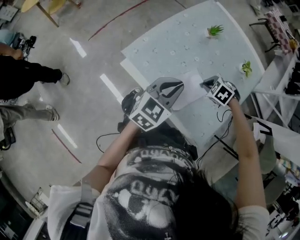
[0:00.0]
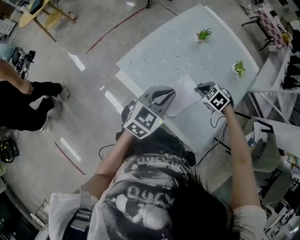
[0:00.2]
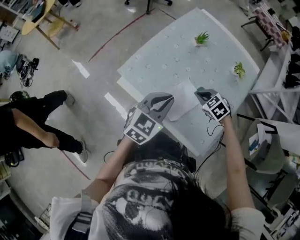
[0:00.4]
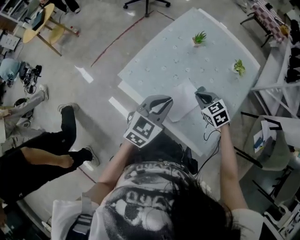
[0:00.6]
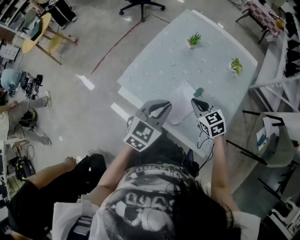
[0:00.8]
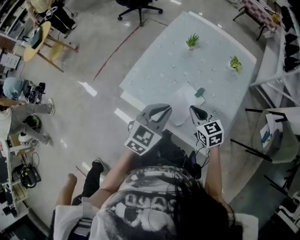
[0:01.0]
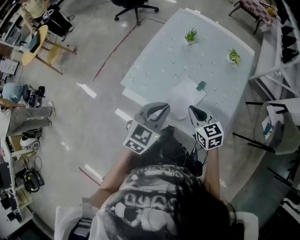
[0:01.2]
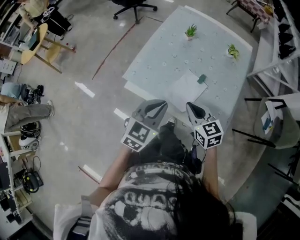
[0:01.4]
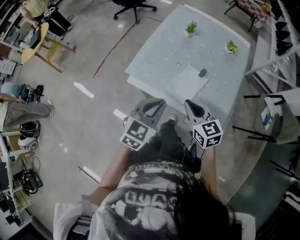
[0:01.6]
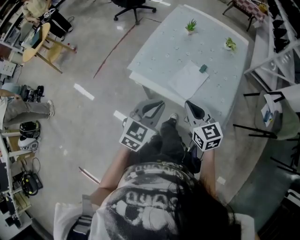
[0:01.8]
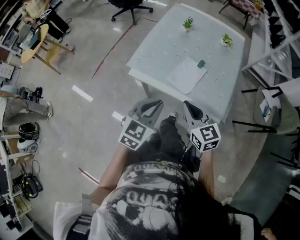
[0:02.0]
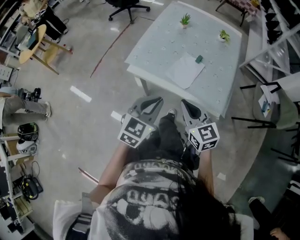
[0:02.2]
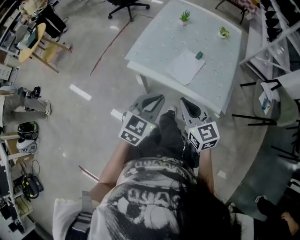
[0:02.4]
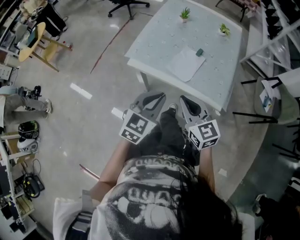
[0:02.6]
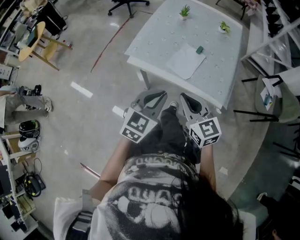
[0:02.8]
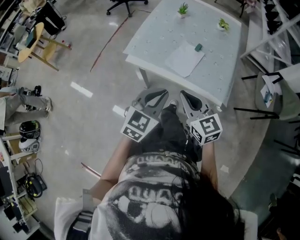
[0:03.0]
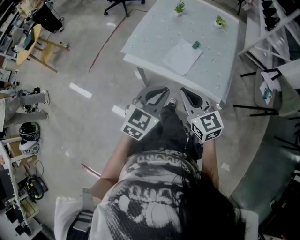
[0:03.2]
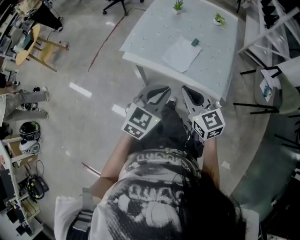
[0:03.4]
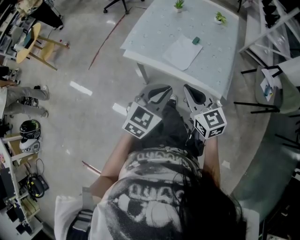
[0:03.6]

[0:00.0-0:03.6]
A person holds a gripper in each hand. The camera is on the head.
0:00.0 to 0:01.8: The left gripper changes place by approximately 20 cm, while the right gripper moves about 30 cm, and angles its fingers upward, by some 60 degrees.
0:01.8 to 0:03.6: The left gripper moves backward and to the right, about 10 cm. Meanwhile the right gripper shifts approximately 10 cm backward.

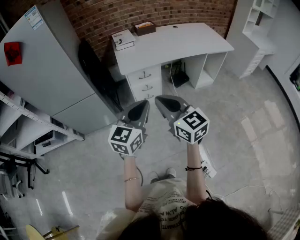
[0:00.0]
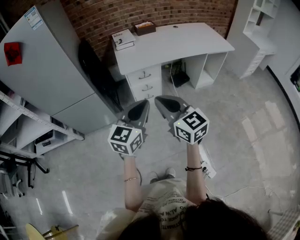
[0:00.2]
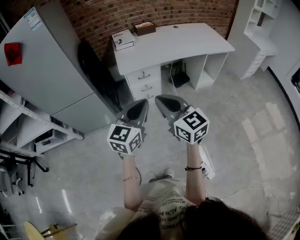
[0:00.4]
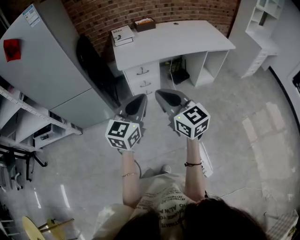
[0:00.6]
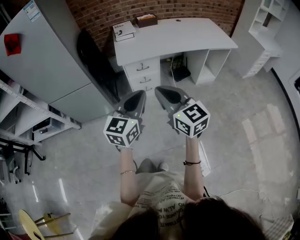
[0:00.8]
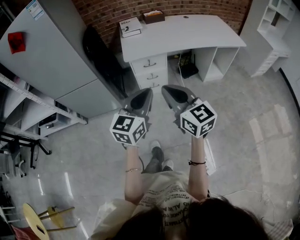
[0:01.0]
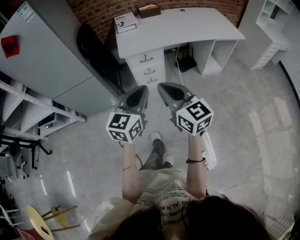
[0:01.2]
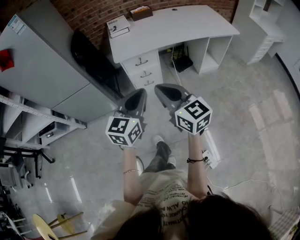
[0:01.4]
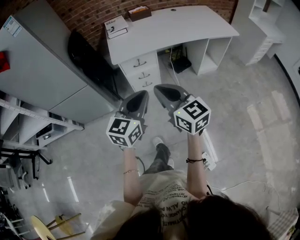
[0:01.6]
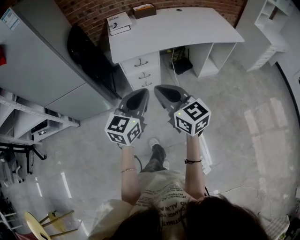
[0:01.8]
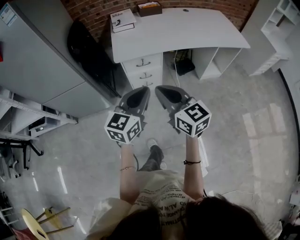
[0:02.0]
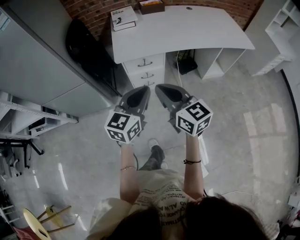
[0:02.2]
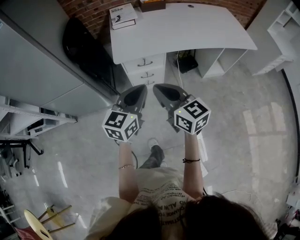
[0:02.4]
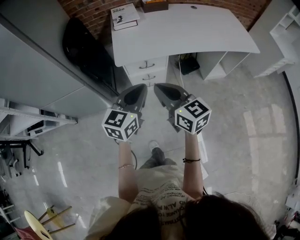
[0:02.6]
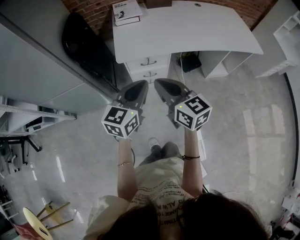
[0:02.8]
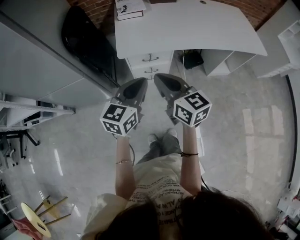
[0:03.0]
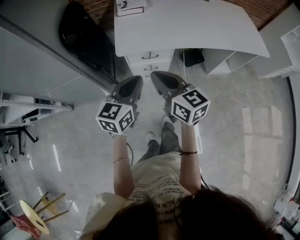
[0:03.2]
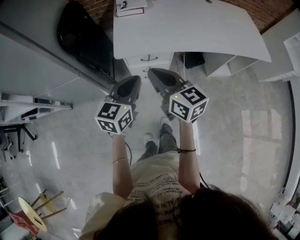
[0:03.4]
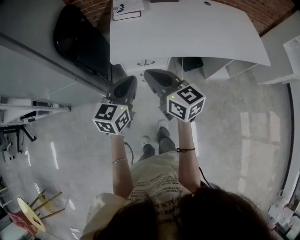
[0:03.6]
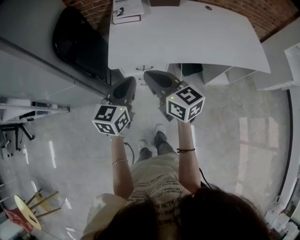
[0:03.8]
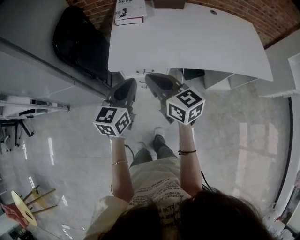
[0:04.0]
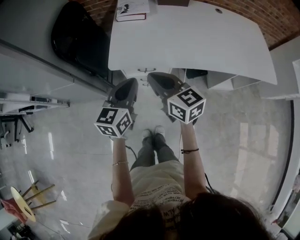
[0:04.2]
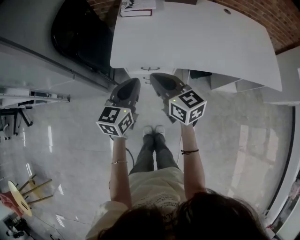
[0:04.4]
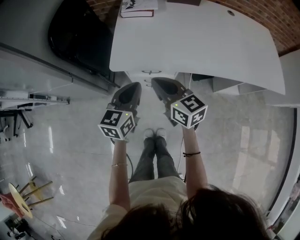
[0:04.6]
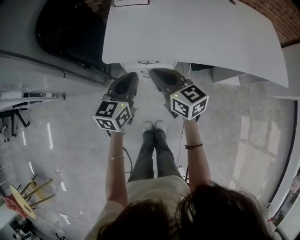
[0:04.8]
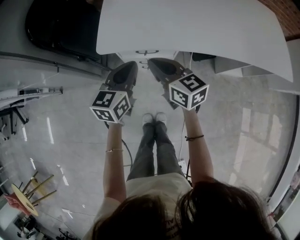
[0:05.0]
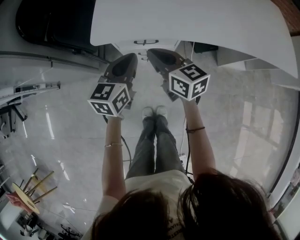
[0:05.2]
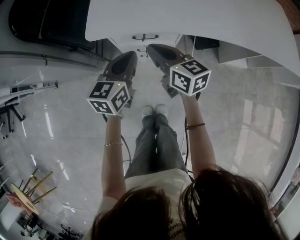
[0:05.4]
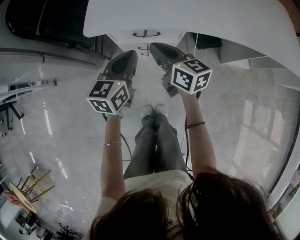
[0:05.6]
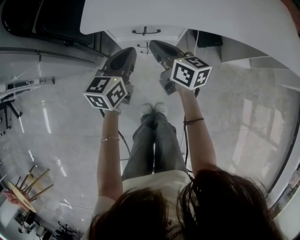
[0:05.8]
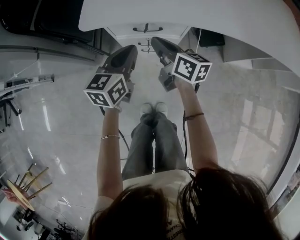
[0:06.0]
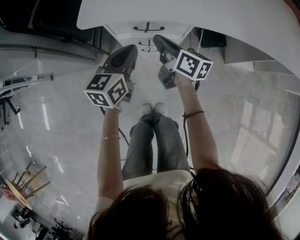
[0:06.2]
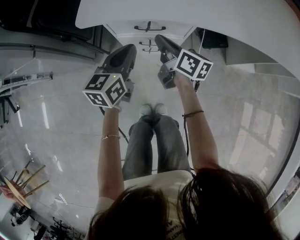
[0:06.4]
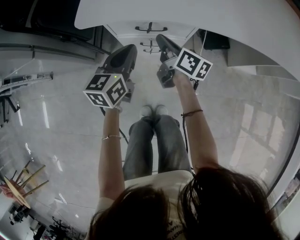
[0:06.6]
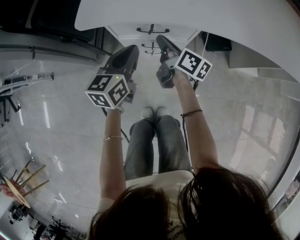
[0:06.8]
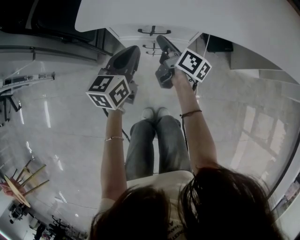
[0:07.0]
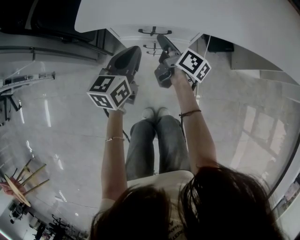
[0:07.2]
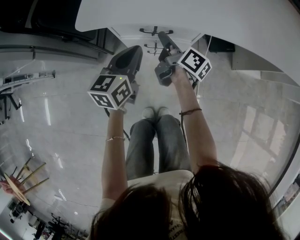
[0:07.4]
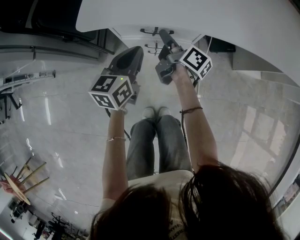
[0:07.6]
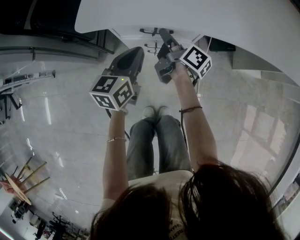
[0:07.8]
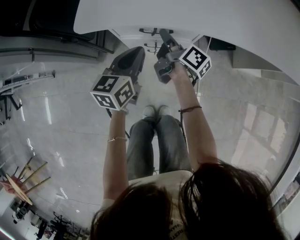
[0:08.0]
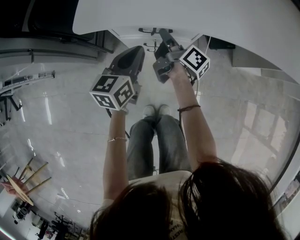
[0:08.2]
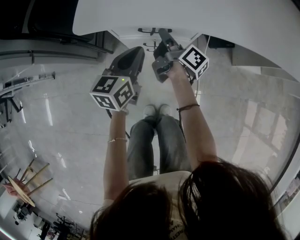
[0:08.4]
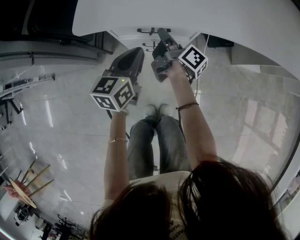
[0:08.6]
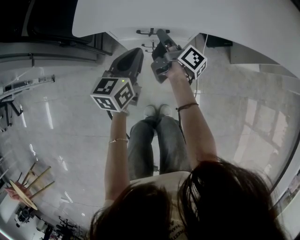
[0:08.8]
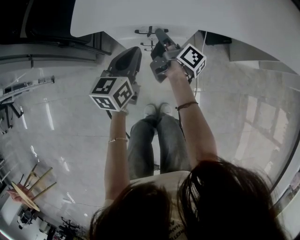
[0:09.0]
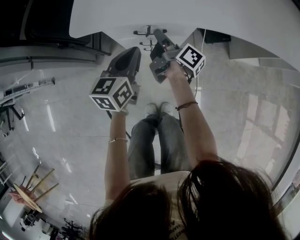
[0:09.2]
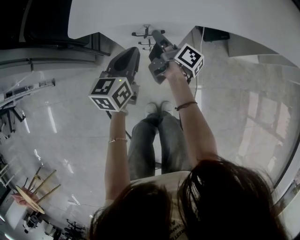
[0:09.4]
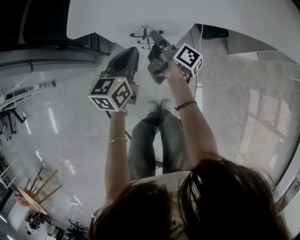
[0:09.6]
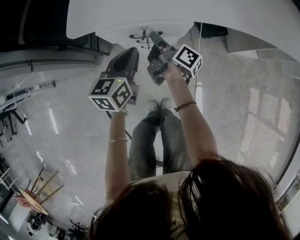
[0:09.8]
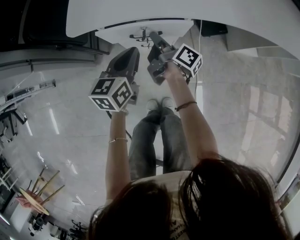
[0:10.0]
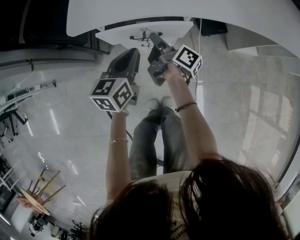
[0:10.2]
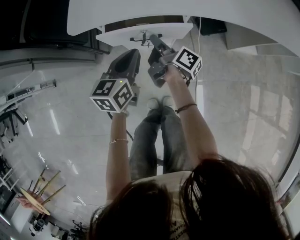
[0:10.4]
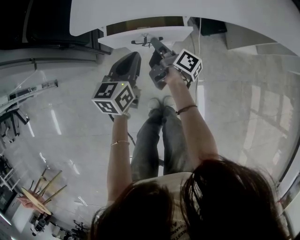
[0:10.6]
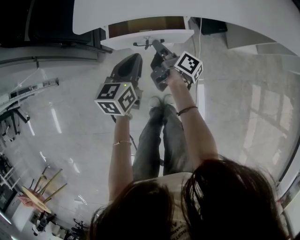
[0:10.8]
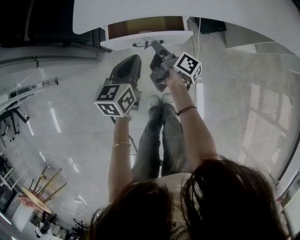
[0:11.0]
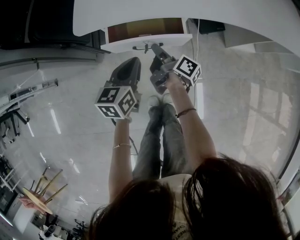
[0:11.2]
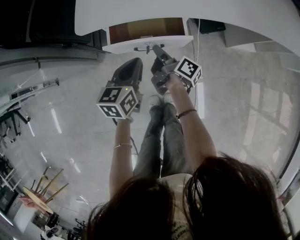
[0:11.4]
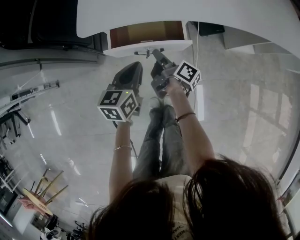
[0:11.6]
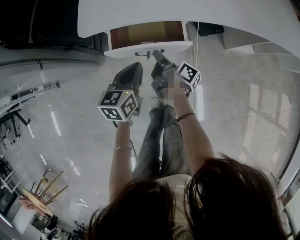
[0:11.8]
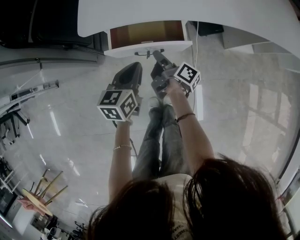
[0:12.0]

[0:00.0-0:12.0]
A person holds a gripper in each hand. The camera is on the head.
0:00.0 to 0:01.6: Both grippers move to the right, approximately 10 cm.
0:01.6 to 0:03.0: The grippers both shift forward by roughly 25 cm.
0:03.0 to 0:04.4: The two grippers go approximately 15 cm forward and downward.
0:04.4 to 0:06.0: Both grippers travel together downward, approximately 25 cm. The right gripper swivels roughly 30 degrees.
0:06.0 to 0:07.6: The right gripper travels downward and forward by roughly 10 cm, swivels some 30 degrees, and opens up, while the left gripper heads downward, covering approximately 5 cm.
0:07.6 to 0:09.0: There are only small adjustments of the grippers.
0:09.0 to 0:10.4: The right gripper goes approximately 5 cm backward.
0:10.4 to 0:12.0: The grippers both shift backward by some 5 cm.

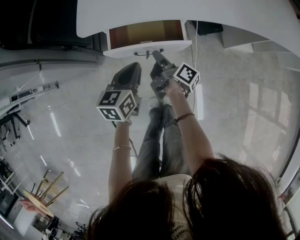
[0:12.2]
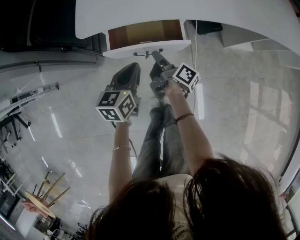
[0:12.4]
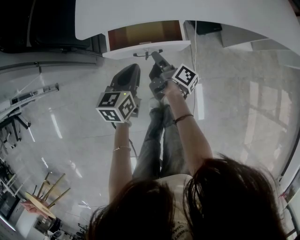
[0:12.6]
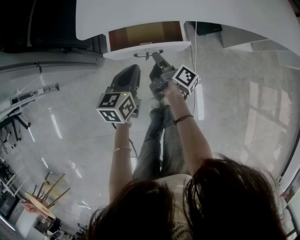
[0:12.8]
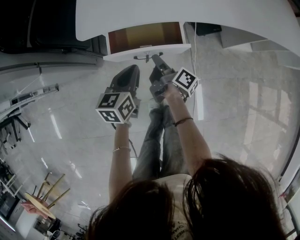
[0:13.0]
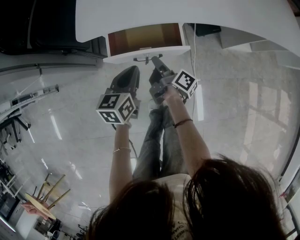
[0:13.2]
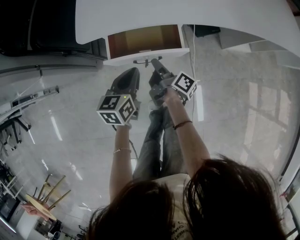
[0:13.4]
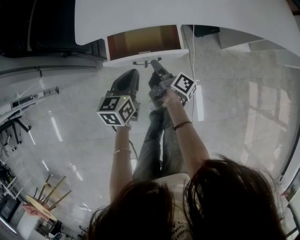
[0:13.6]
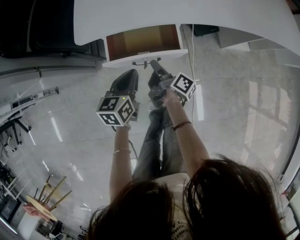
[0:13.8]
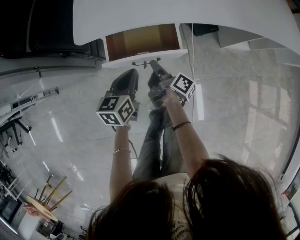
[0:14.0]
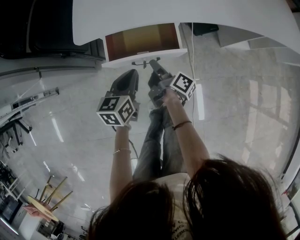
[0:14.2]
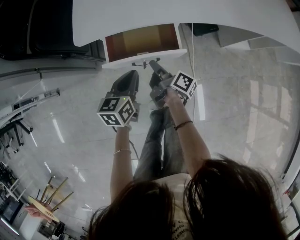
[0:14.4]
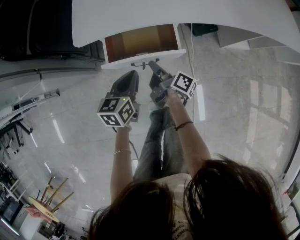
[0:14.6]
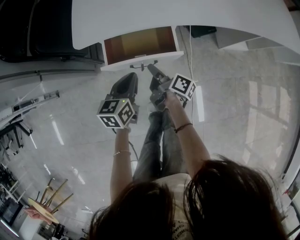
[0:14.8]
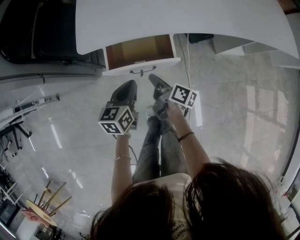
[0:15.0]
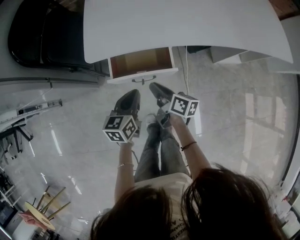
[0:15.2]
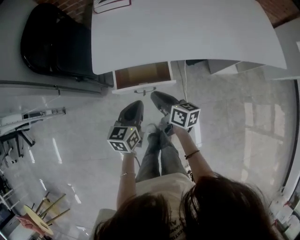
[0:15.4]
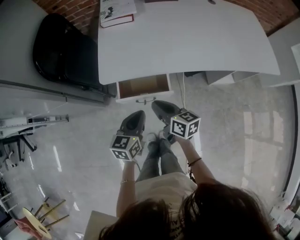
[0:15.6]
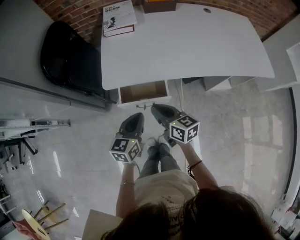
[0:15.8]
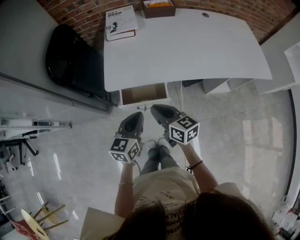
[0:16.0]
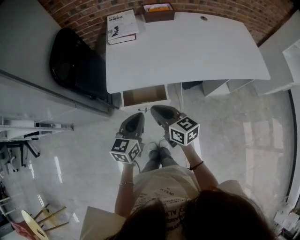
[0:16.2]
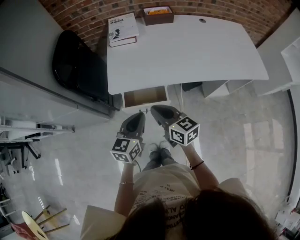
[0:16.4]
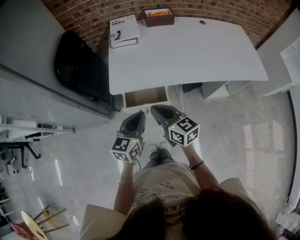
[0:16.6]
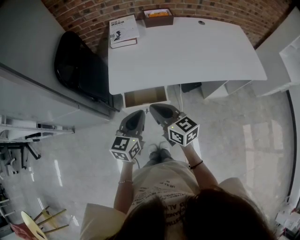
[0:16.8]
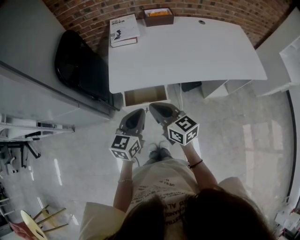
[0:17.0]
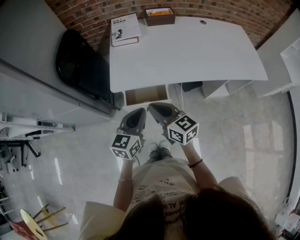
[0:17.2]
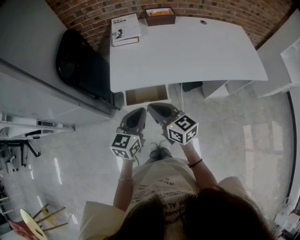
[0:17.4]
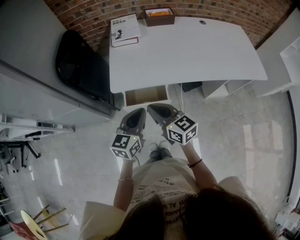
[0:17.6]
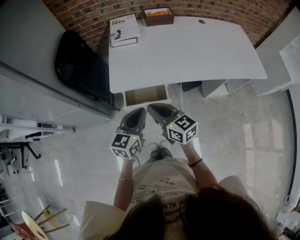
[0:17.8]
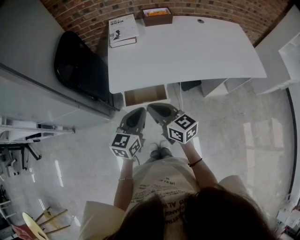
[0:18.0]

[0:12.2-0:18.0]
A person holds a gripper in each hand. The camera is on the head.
0:12.2 to 0:13.6: Both grippers stay put.
0:13.6 to 0:15.0: The grippers move only a little.
0:15.0 to 0:16.6: The two grippers go roughly 30 cm upward. The right gripper twists roughly 60 degrees counterclockwise, seen from behind.
0:16.6 to 0:18.0: There are only small adjustments of the grippers.

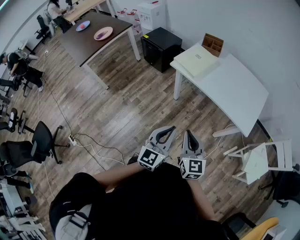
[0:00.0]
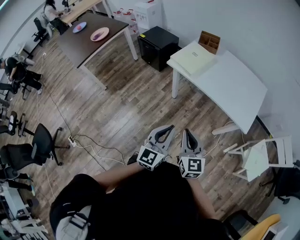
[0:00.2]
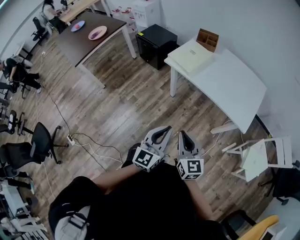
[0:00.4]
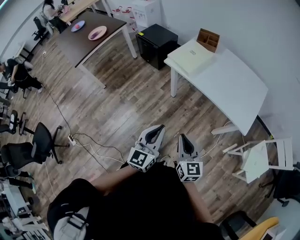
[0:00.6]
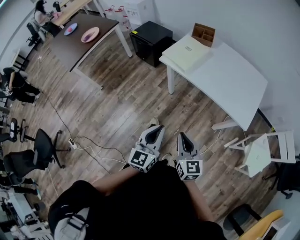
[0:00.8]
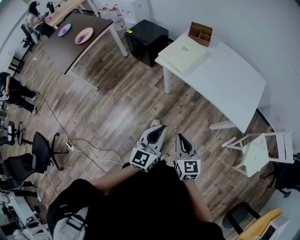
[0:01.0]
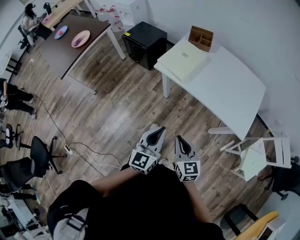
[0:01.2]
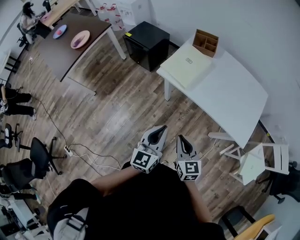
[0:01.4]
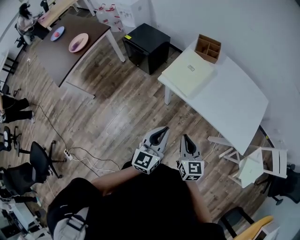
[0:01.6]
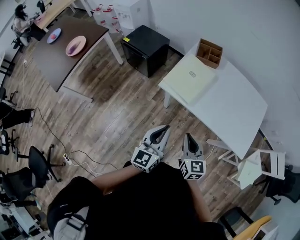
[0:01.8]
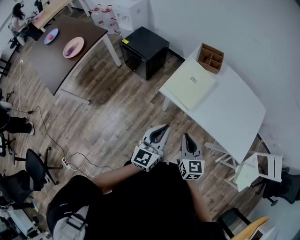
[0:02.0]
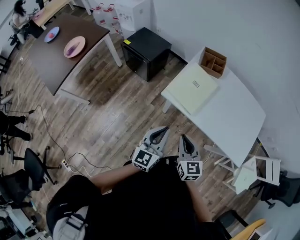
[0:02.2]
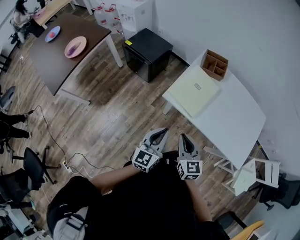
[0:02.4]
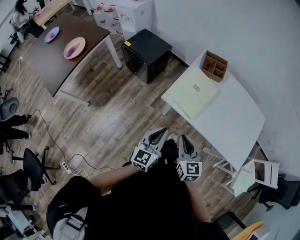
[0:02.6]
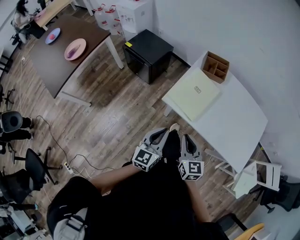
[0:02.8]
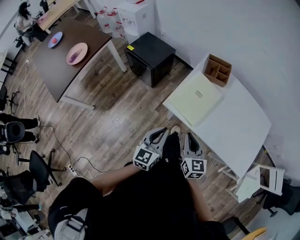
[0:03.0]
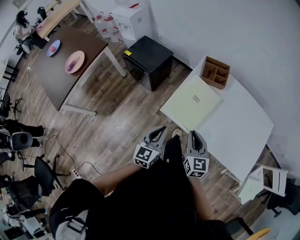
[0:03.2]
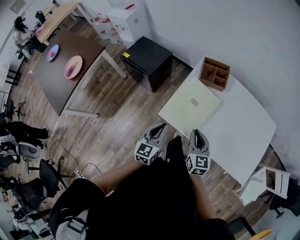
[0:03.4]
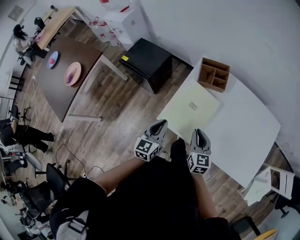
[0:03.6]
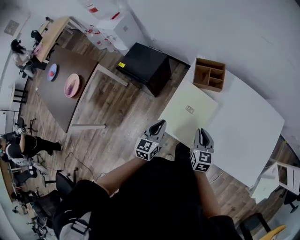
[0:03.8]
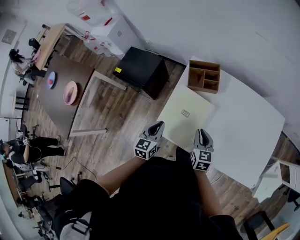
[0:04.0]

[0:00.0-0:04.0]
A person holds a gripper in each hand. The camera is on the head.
0:00.0 to 0:01.4: The right gripper shifts roughly 20 cm forward and downward. Meanwhile the left gripper shifts about 20 cm forward.
0:01.4 to 0:02.6: Both grippers move forward and to the left, roughly 20 cm.
0:02.6 to 0:04.0: The right gripper moves forward, to the right and downward, some 30 cm, and changes its angle by roughly 20 degrees; the left gripper is displaced forward by approximately 25 cm, and turns by some 20 degrees.
